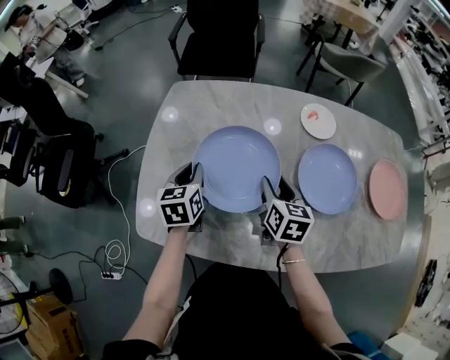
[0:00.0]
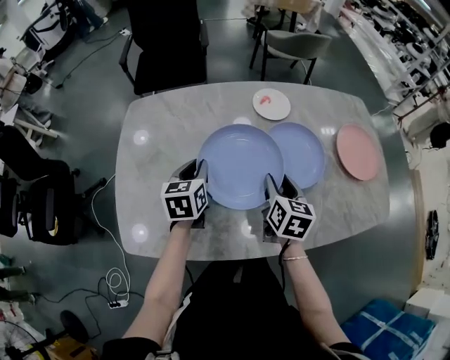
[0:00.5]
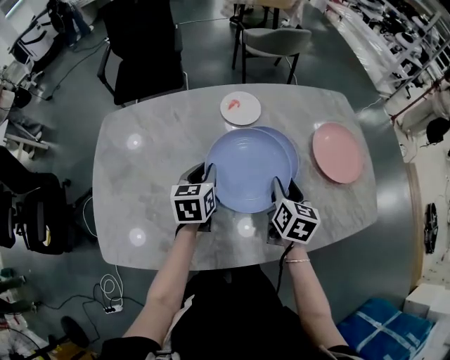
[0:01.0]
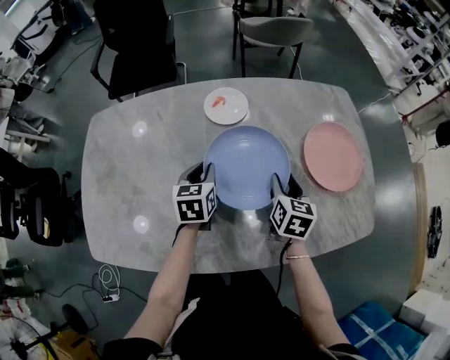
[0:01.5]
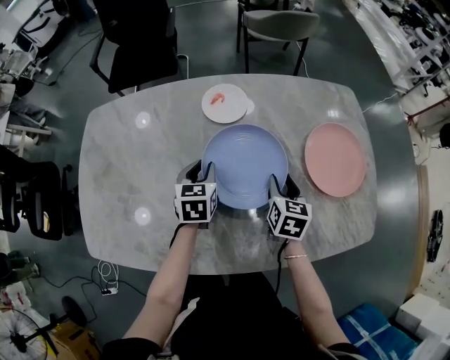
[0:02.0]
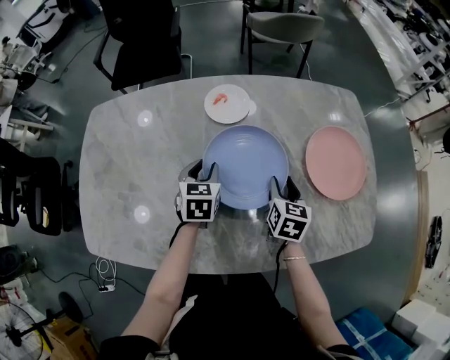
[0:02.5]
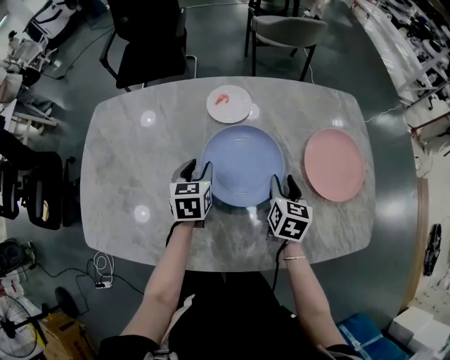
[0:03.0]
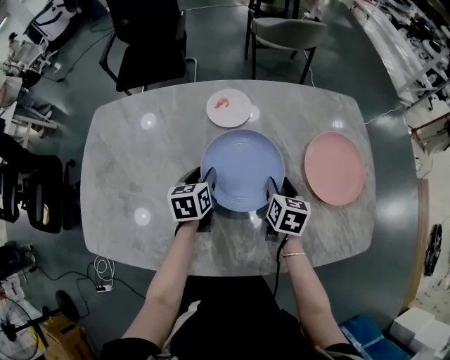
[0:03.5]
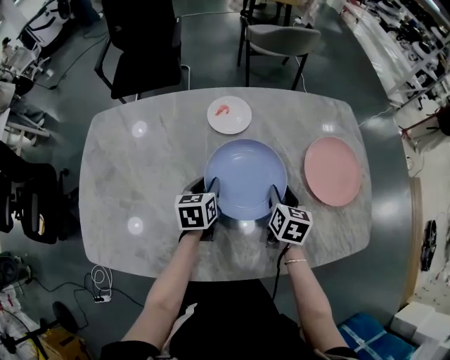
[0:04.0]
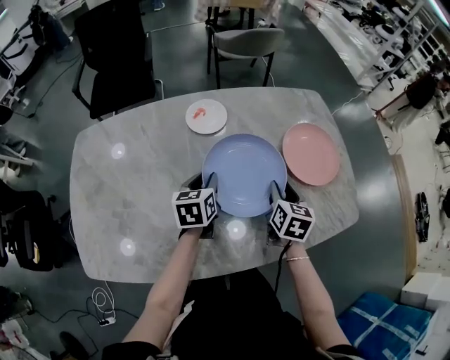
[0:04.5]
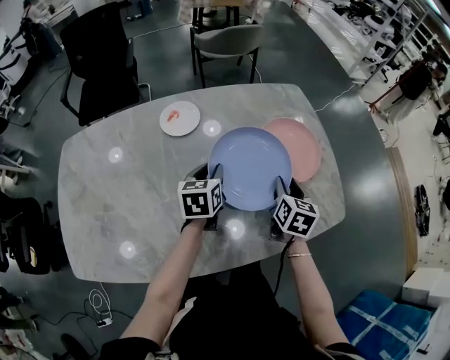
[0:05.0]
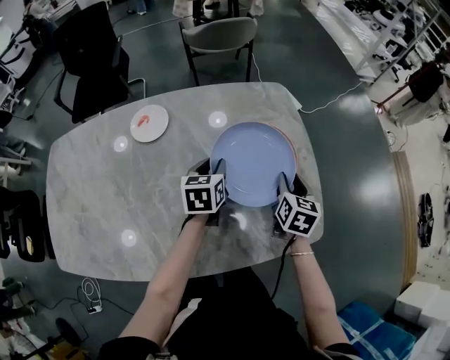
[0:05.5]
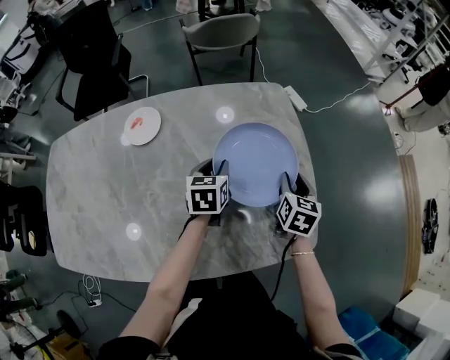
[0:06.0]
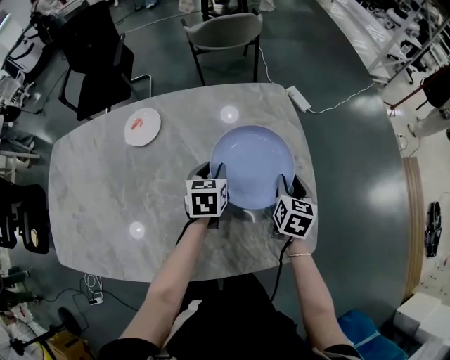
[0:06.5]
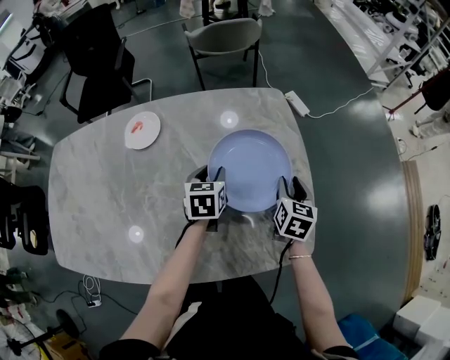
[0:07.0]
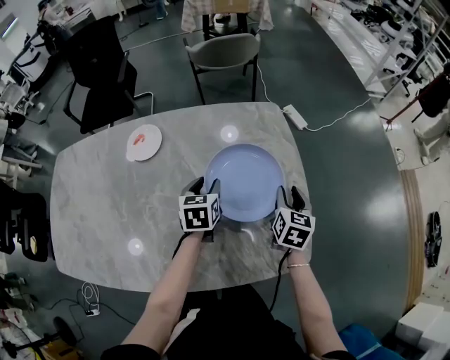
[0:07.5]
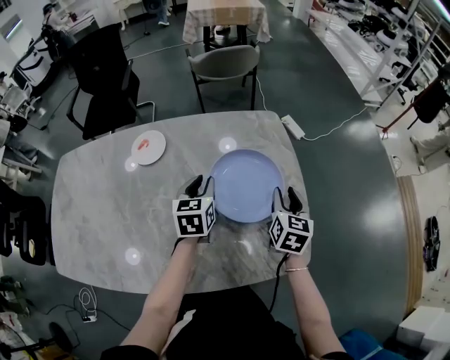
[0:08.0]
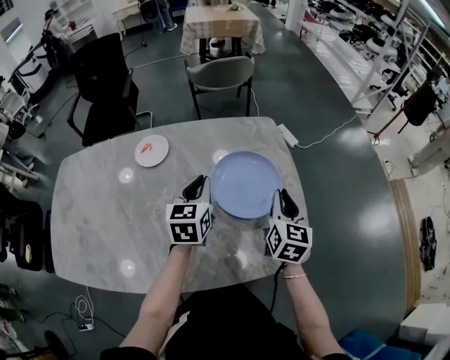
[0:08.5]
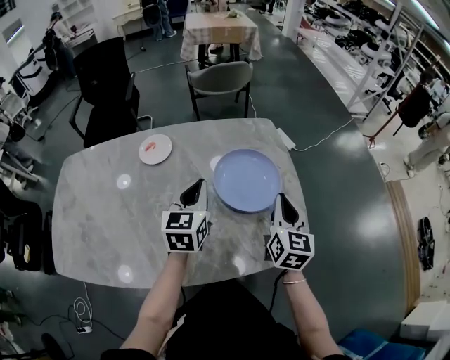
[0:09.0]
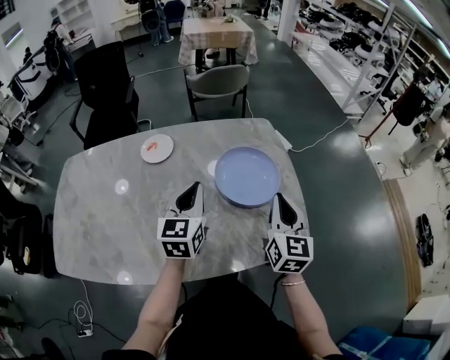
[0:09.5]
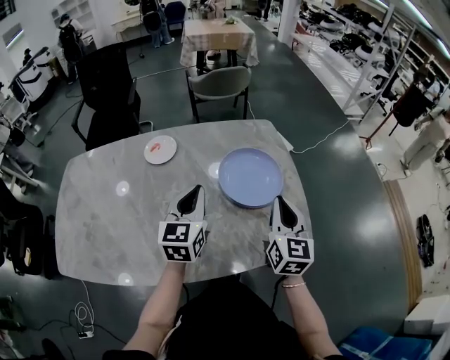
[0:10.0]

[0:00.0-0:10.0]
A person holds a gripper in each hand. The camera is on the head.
0:00.0 to 0:02.0: The grippers both shift to the right by about 30 cm. The left gripper rotates some 20 degrees.
0:02.0 to 0:04.0: The grippers move only a little.
0:04.0 to 0:06.0: The right gripper is displaced to the right by approximately 30 cm; the left gripper moves to the right and forward, about 35 cm.
0:06.0 to 0:08.0: The left gripper is displaced upward by roughly 5 cm.
0:08.0 to 0:10.0: The left gripper is displaced backward and upward by approximately 15 cm, changes its angle by some 20 degrees, and closes up. Meanwhile the right gripper shifts roughly 20 cm backward, upward and to the left, and closes its fingers.

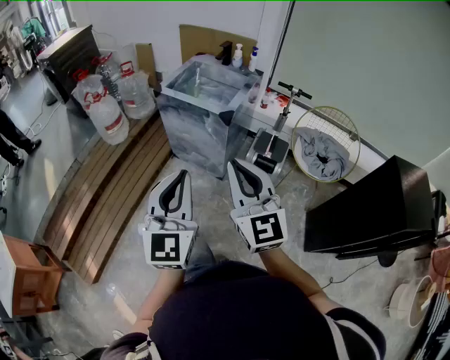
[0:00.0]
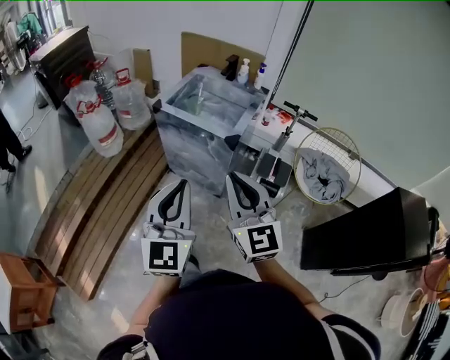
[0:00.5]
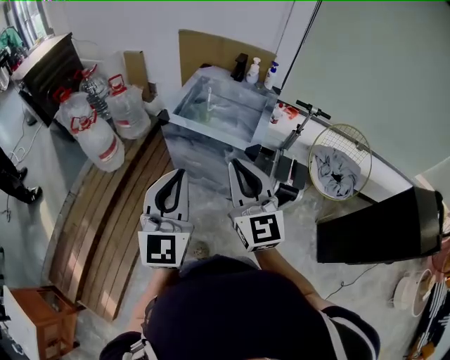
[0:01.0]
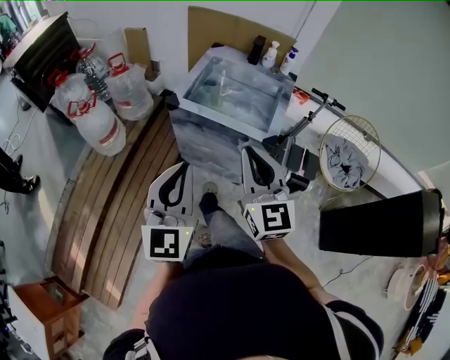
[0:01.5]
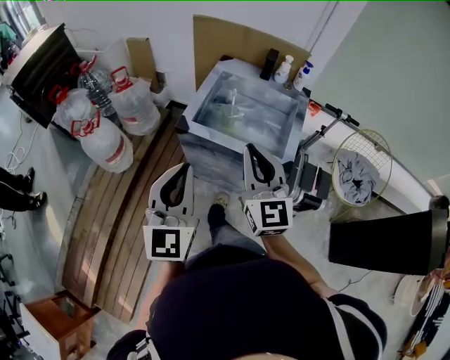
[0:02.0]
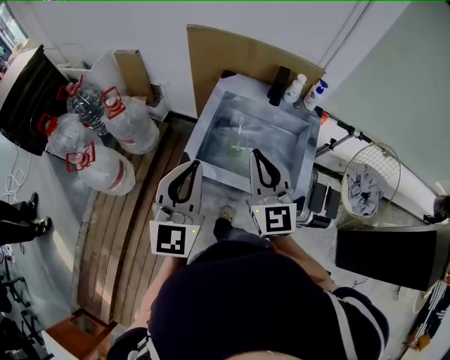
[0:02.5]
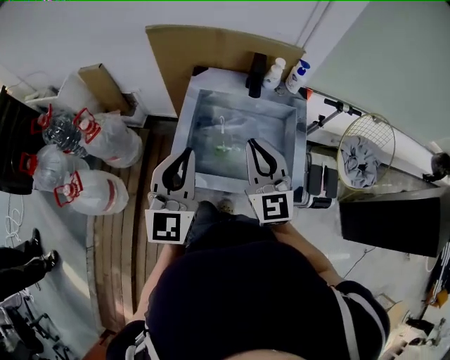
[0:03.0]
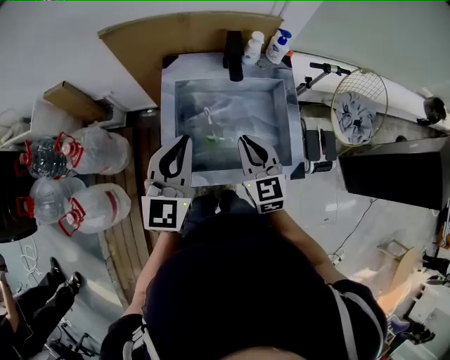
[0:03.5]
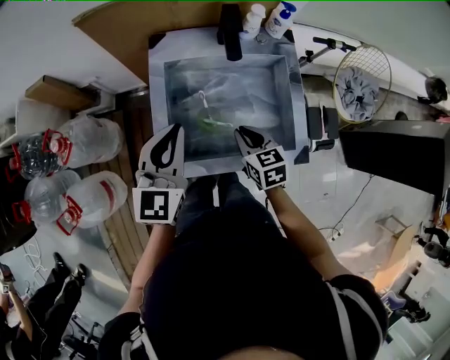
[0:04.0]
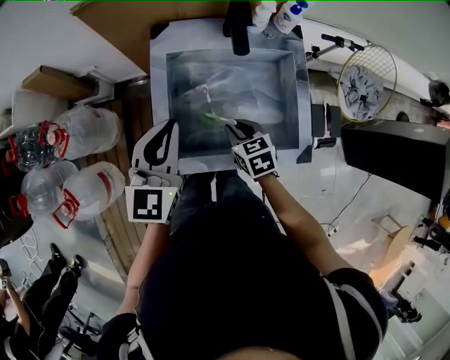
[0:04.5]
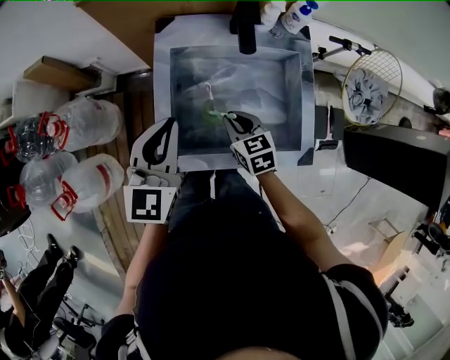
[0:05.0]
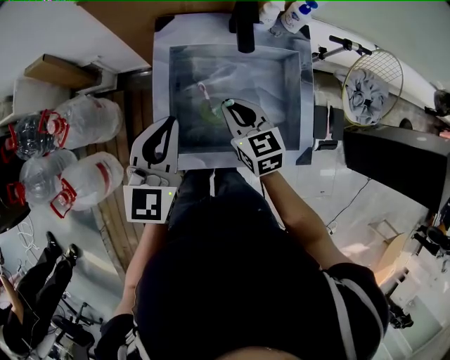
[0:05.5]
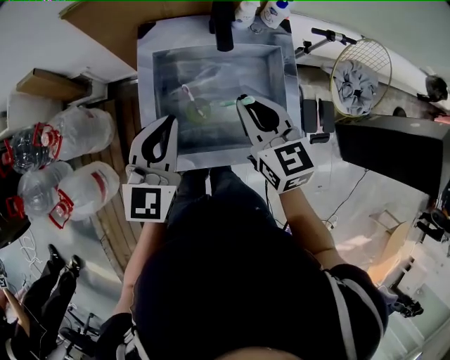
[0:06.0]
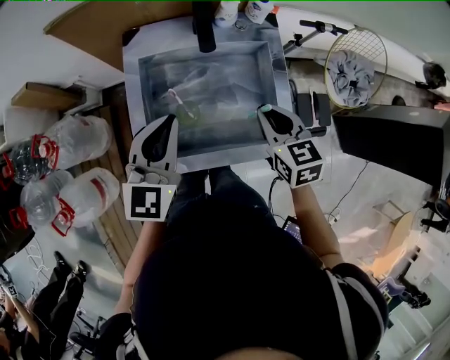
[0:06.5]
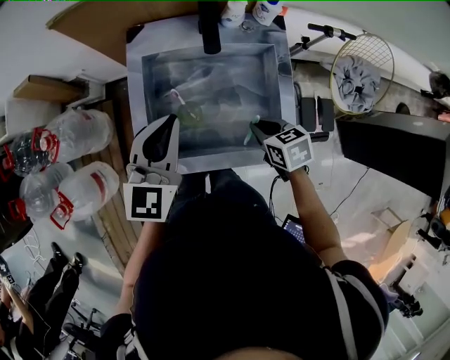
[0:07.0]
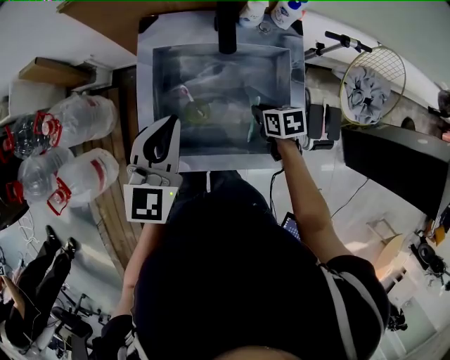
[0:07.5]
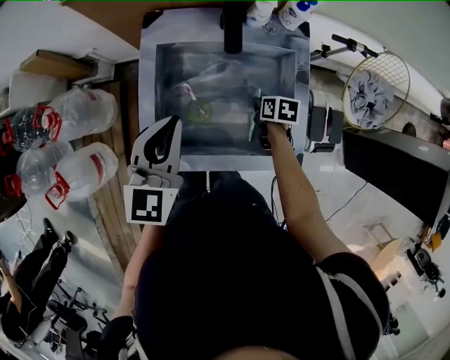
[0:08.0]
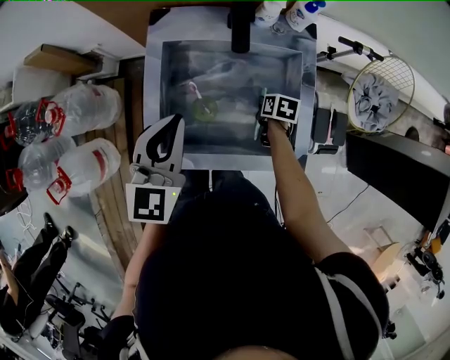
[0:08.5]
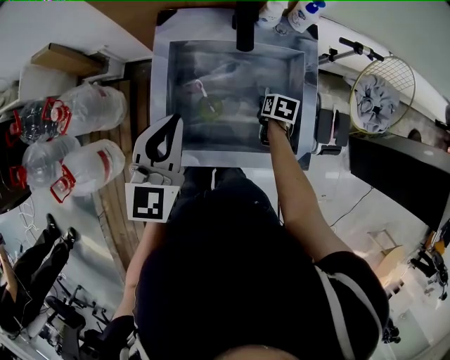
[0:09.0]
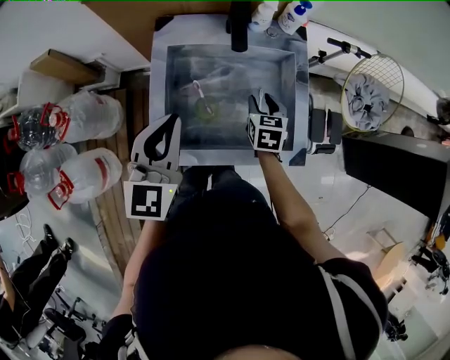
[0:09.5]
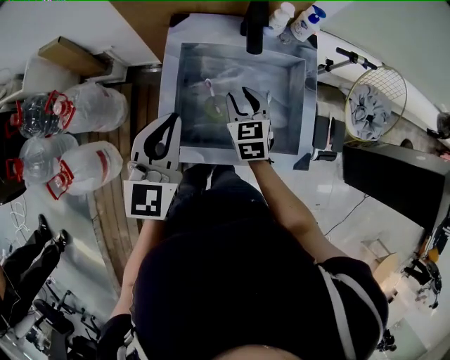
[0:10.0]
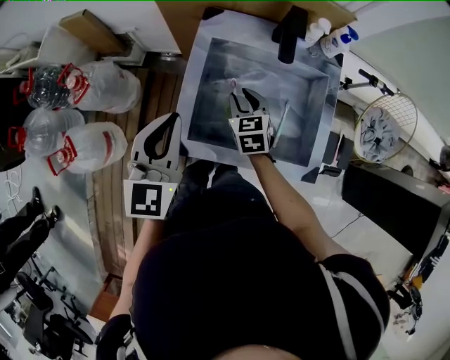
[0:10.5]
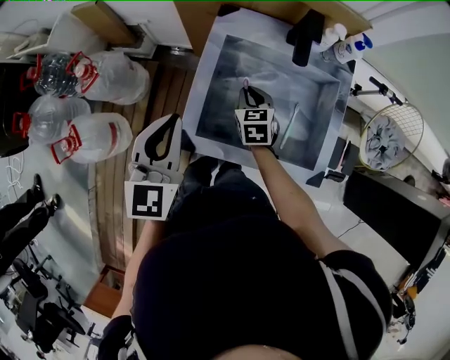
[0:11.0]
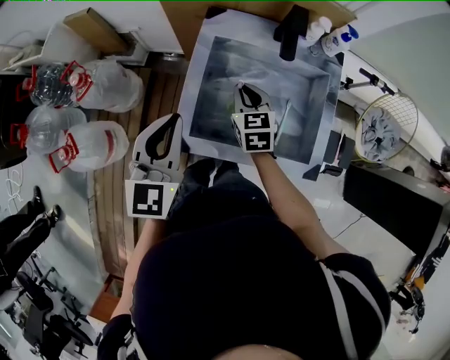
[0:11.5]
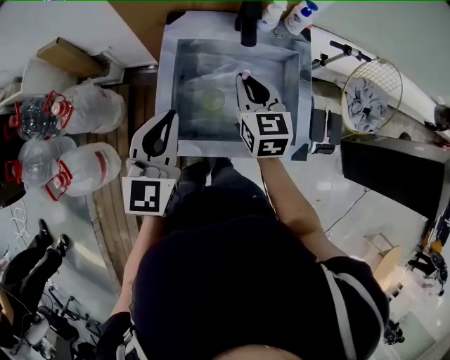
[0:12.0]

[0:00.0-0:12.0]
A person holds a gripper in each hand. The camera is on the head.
0:00.0 to 0:02.0: The two grippers travel together, forward and to the left, roughly 50 cm.
0:02.0 to 0:04.0: The right gripper travels downward and forward by approximately 35 cm, and points its fingers about 40 degrees further downward. The left gripper moves forward, about 35 cm, and swivels roughly 40 degrees.
0:04.0 to 0:06.0: The right gripper is displaced upward by roughly 15 cm.
0:06.0 to 0:08.0: The right gripper shifts about 30 cm downward, and tips its fingers downward by roughly 40 degrees.
0:08.0 to 0:10.0: The right gripper is displaced upward and to the left by about 20 cm, rotates roughly 50 degrees, and opens up. Meanwhile the left gripper is displaced to the left by about 5 cm.
0:10.0 to 0:12.0: The right gripper moves upward, about 10 cm, and closes its fingers.

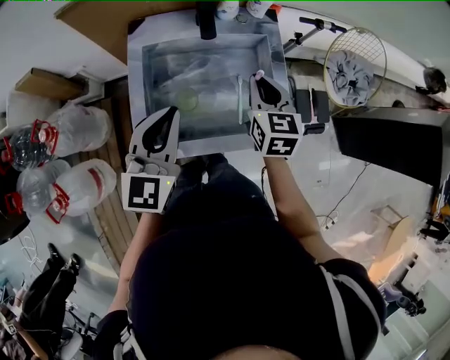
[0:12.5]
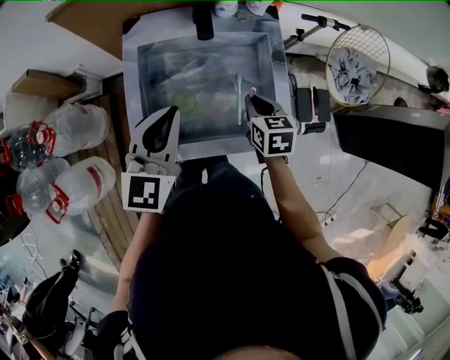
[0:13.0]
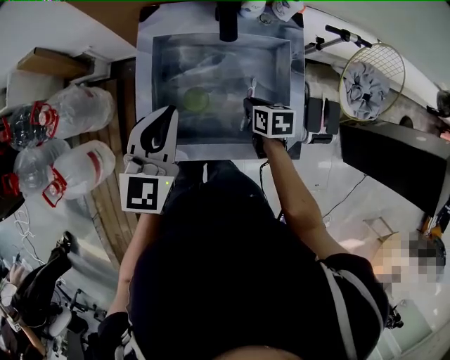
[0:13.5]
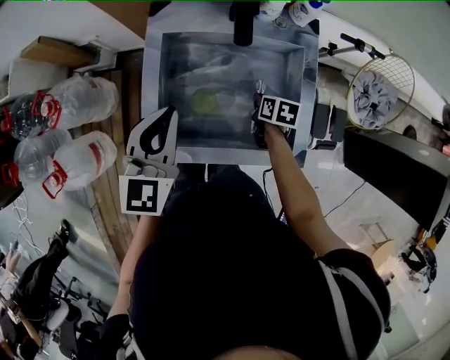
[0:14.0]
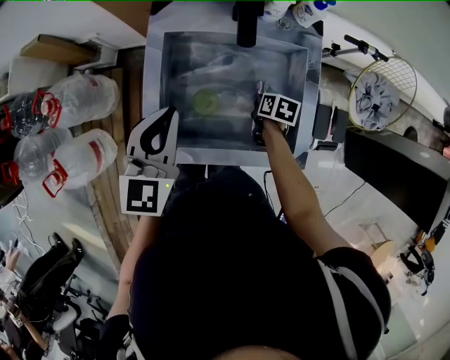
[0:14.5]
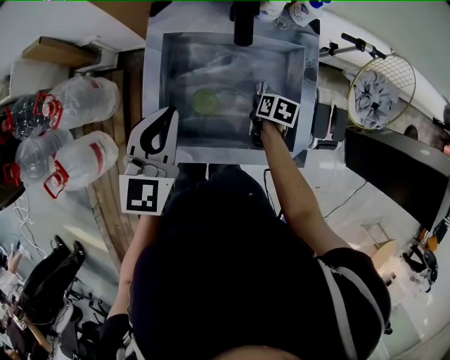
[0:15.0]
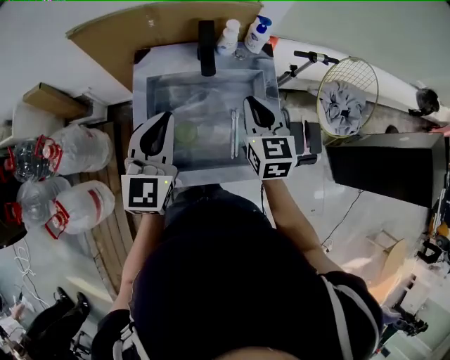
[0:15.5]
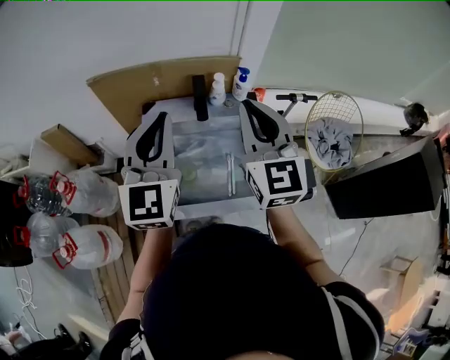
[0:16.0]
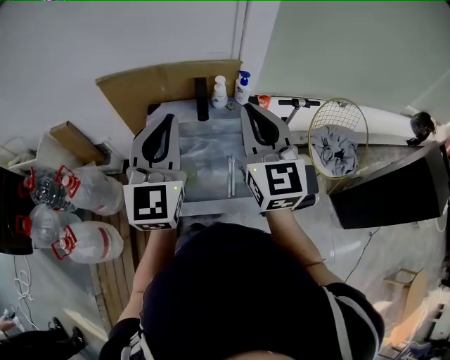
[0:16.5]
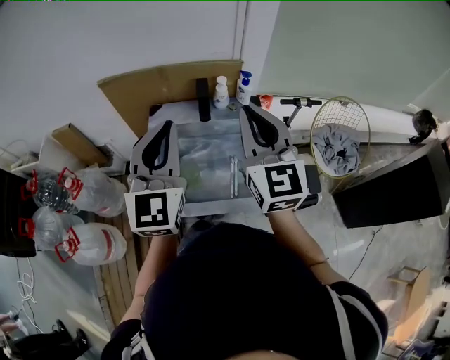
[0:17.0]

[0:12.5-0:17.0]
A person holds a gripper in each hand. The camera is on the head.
0:12.5 to 0:14.5: The right gripper goes roughly 25 cm downward, and points its fingers roughly 40 degrees further downward; the left gripper shifts by about 10 cm.
0:14.5 to 0:17.0: The left gripper is displaced upward by approximately 20 cm, and turns by roughly 30 degrees. Meanwhile the right gripper travels upward by some 50 cm, and tilts its fingers about 70 degrees upward.
